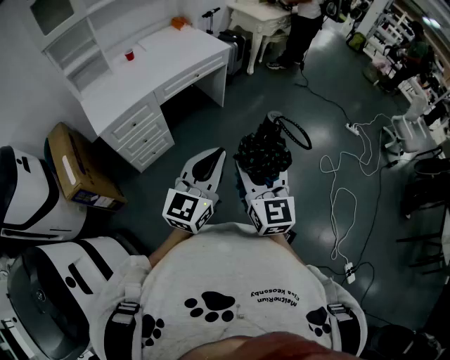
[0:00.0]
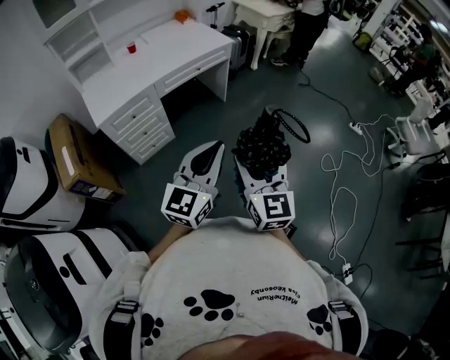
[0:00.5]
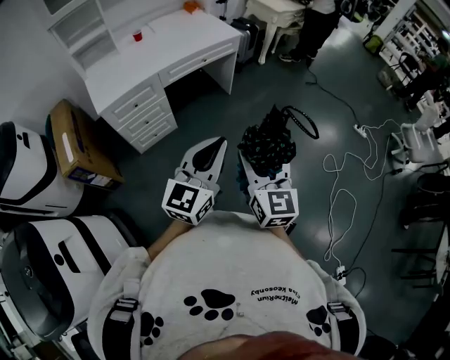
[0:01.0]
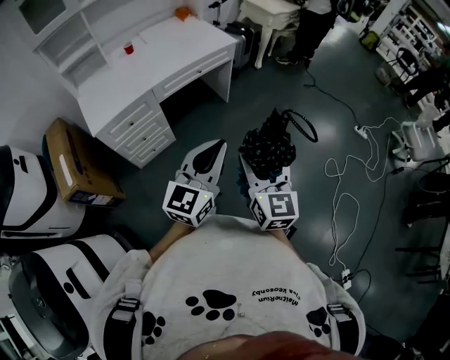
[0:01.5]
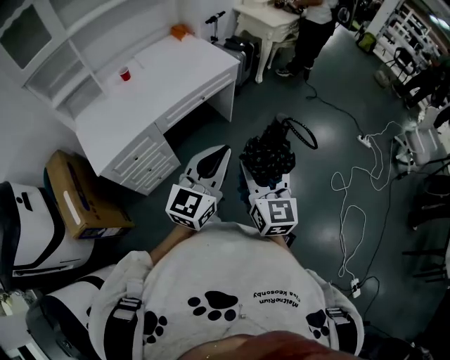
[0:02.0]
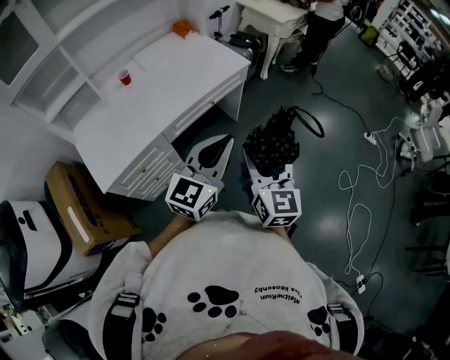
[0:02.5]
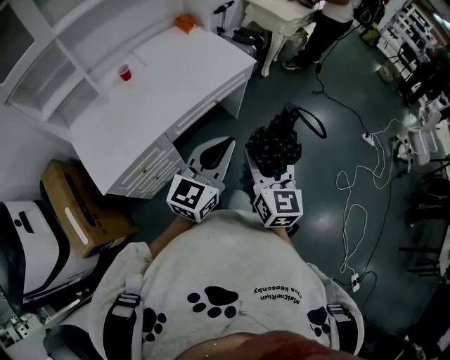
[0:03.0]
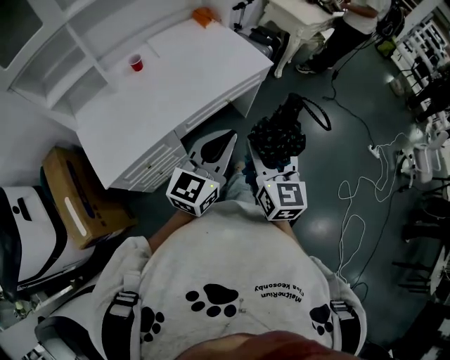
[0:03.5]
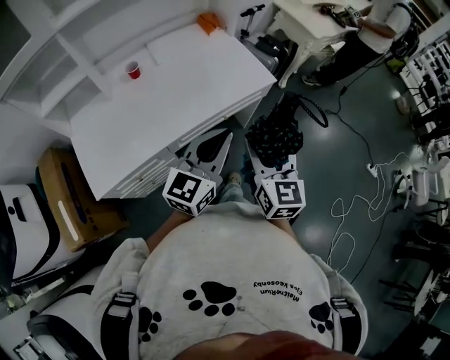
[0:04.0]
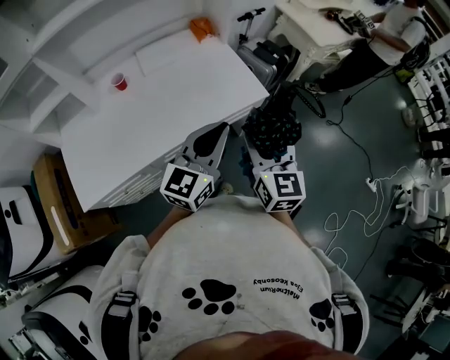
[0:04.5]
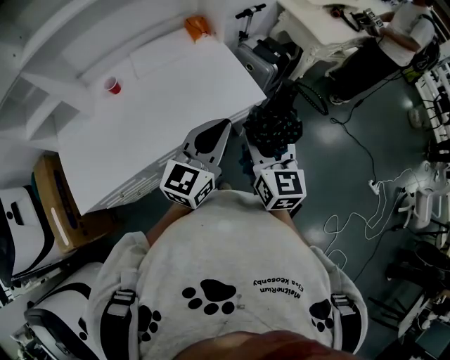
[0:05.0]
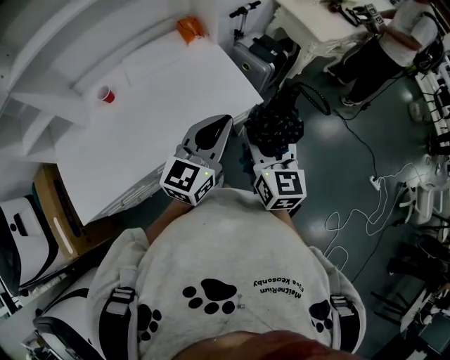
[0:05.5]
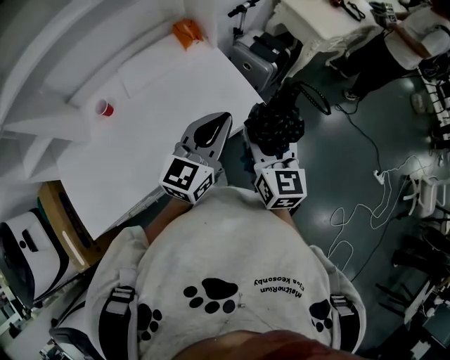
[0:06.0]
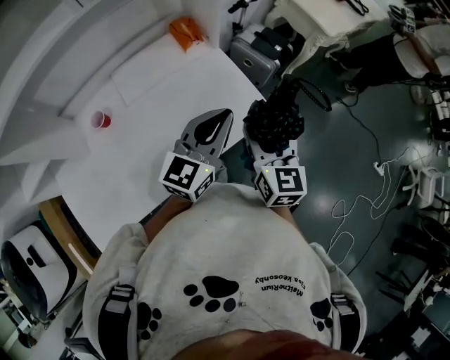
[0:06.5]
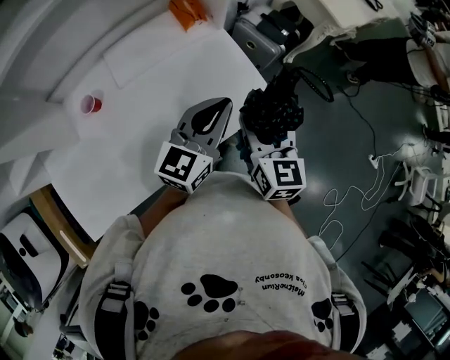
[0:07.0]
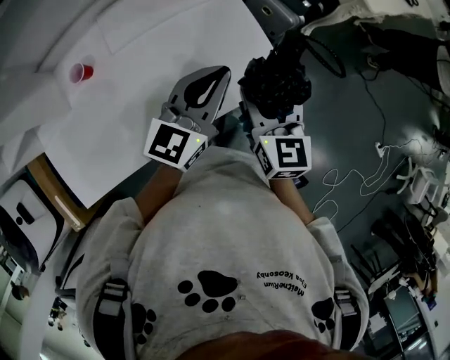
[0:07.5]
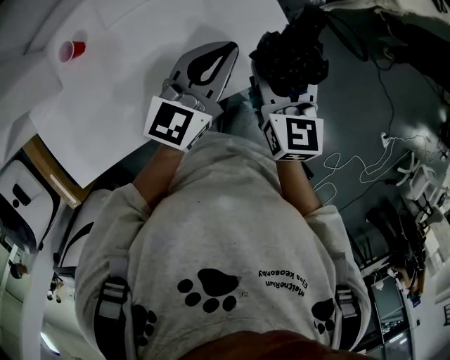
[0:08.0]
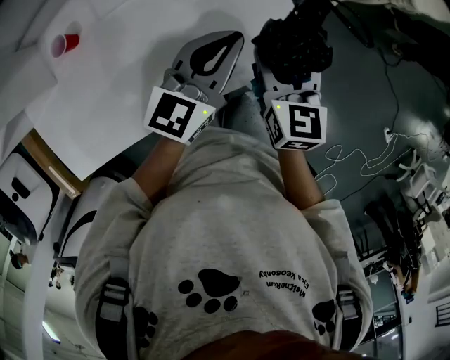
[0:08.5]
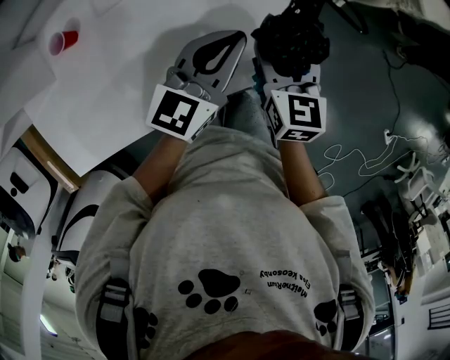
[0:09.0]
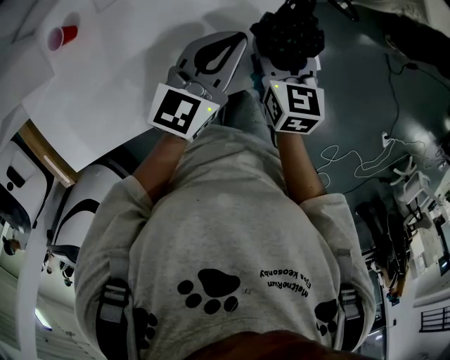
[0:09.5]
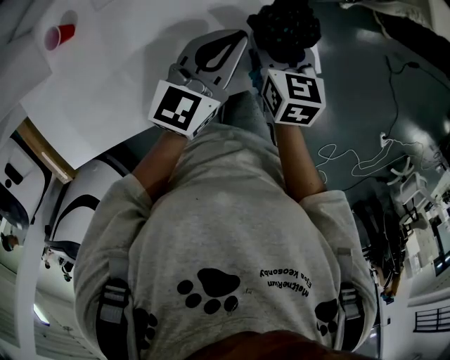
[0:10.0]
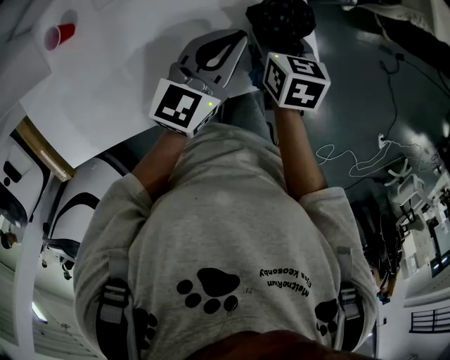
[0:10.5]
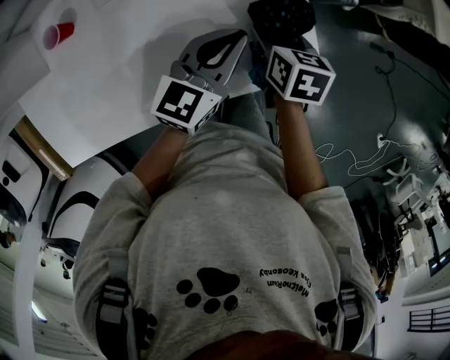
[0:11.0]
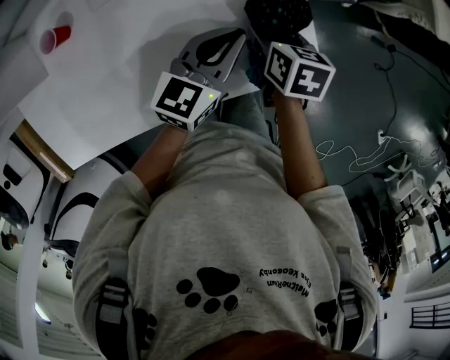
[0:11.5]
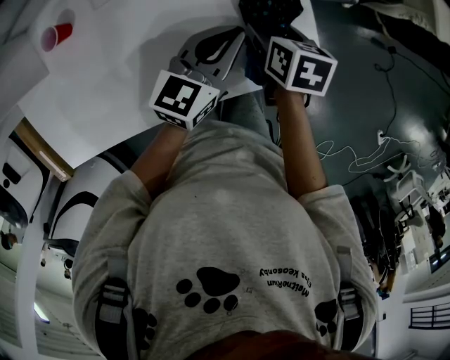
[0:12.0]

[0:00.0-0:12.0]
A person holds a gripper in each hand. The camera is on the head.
0:00.0 to 0:02.0: The two grippers go approximately 25 cm forward.
0:02.0 to 0:04.0: The grippers both shift forward and to the left by roughly 35 cm.
0:04.0 to 0:06.0: Both grippers travel together forward, about 30 cm.
0:06.0 to 0:08.0: The right gripper heads forward, downward and to the left, covering some 20 cm. Meanwhile the left gripper is displaced downward, forward and to the left by roughly 20 cm.
0:08.0 to 0:10.0: The left gripper moves downward, roughly 10 cm; the right gripper heads downward and forward, covering roughly 15 cm.
0:10.0 to 0:12.0: The right gripper moves roughly 5 cm, and swivels about 20 degrees.

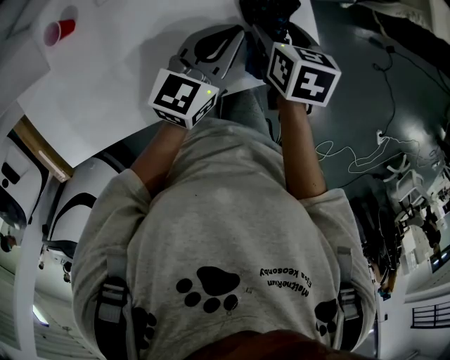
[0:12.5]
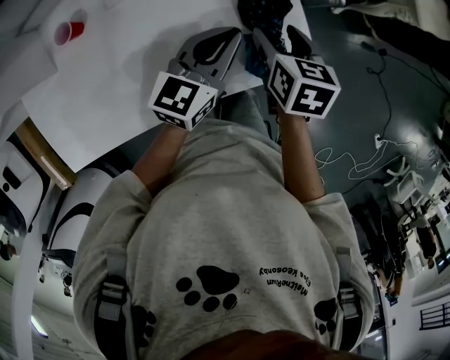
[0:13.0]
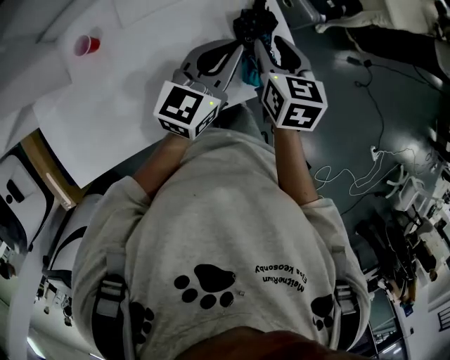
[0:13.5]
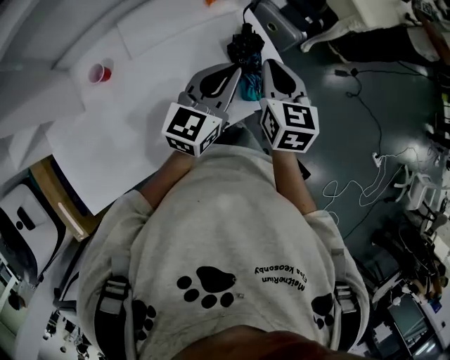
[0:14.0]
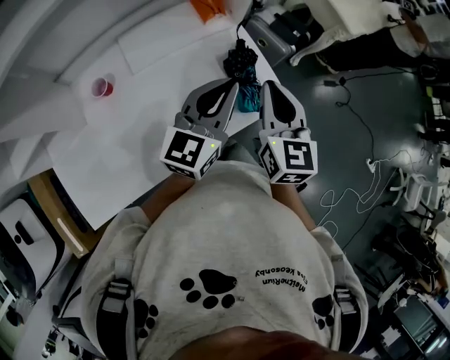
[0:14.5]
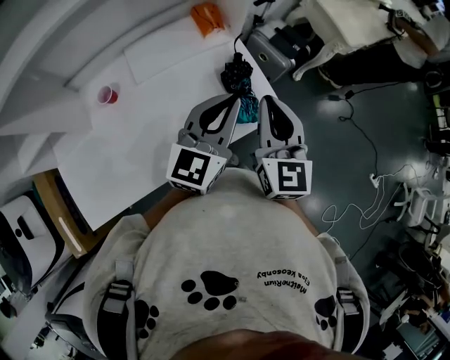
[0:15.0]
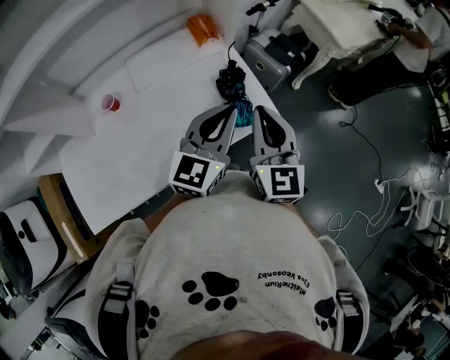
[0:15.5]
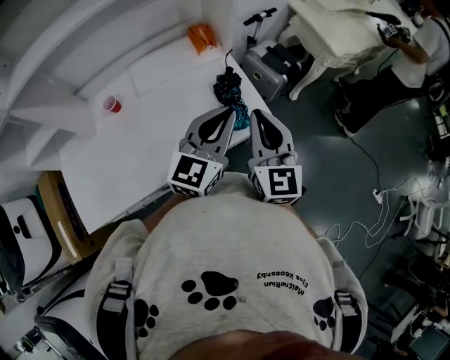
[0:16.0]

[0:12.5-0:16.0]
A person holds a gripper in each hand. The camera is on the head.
0:12.5 to 0:14.5: Both grippers move upward, some 25 cm. The right gripper points its fingers some 40 degrees further upward, and closes its fingers.
0:14.5 to 0:16.0: The left gripper travels to the right and backward by approximately 10 cm. Meanwhile the right gripper goes about 10 cm backward and to the right.

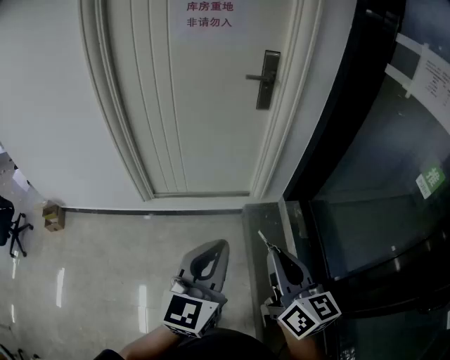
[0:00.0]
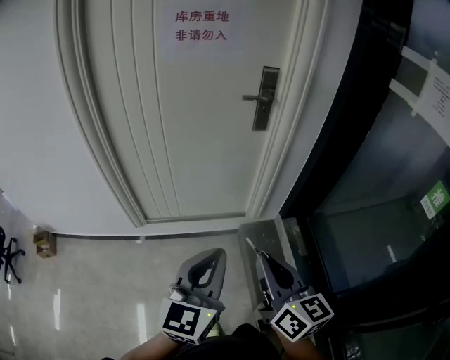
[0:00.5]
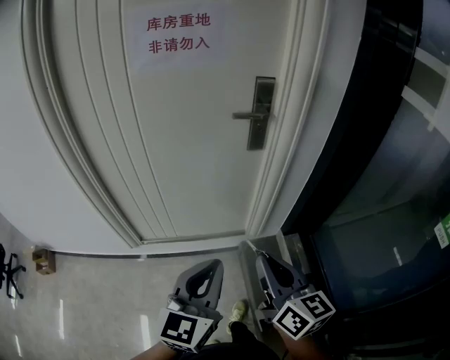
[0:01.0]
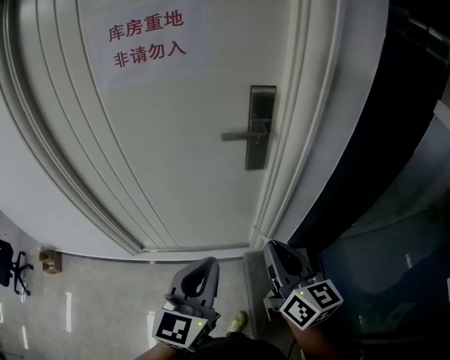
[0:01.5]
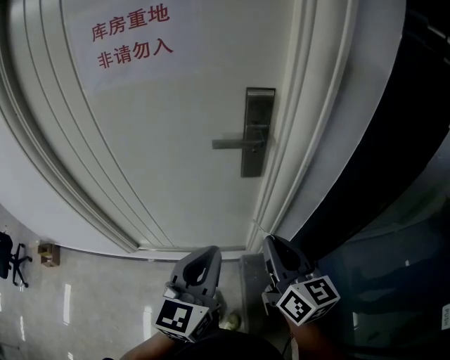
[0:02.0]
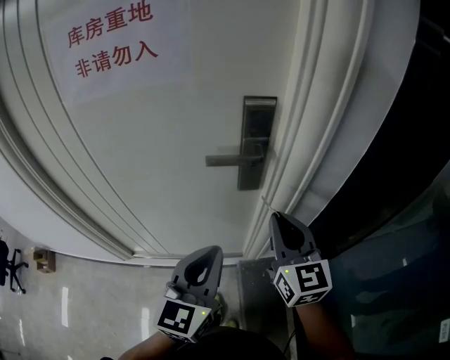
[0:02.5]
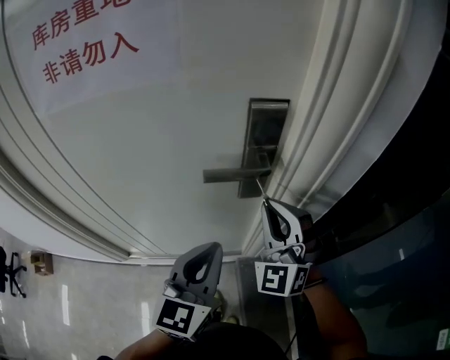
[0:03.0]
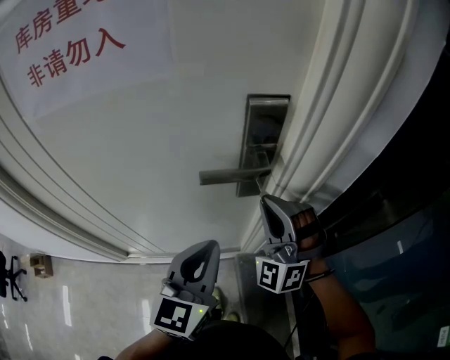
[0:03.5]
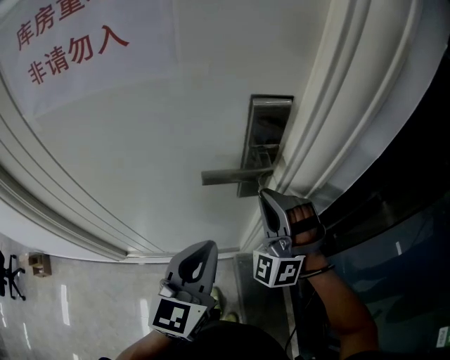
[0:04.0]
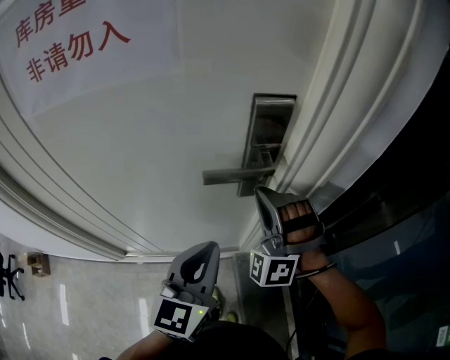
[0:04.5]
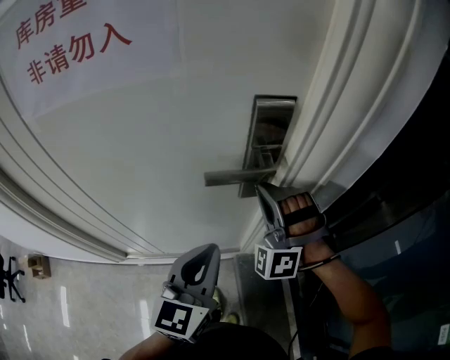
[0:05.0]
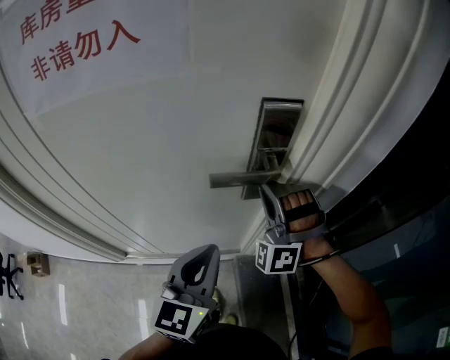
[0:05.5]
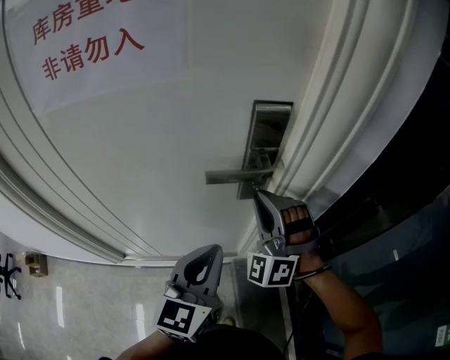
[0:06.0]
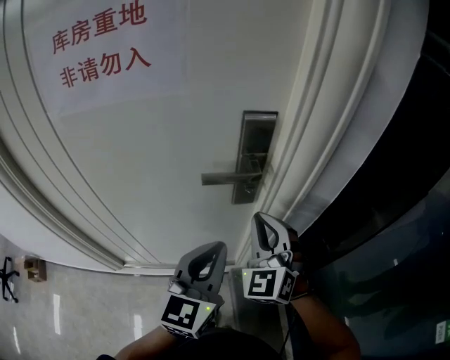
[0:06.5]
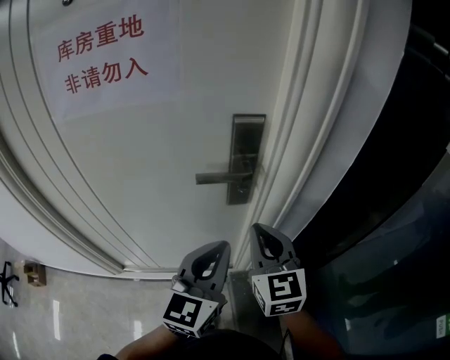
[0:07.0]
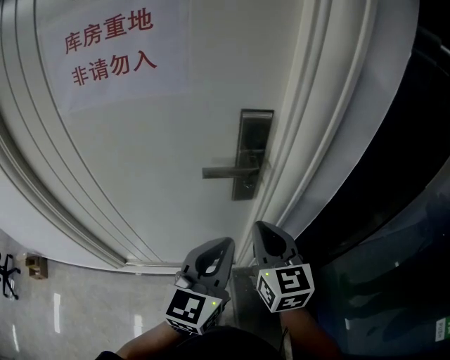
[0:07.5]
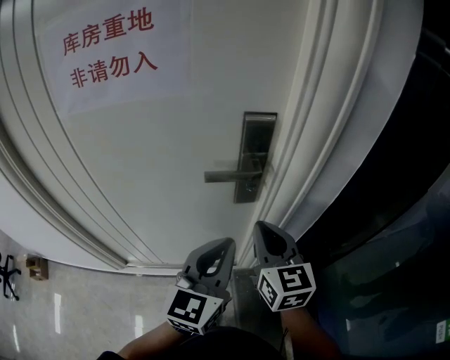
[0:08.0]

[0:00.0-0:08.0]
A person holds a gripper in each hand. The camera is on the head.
0:00.0 to 0:02.0: The pair of grippers is taken forward, about 50 cm.
0:02.0 to 0:04.0: Both grippers travel together forward, some 15 cm. The right gripper rotates around the line of its fingers by approximately 100 degrees, counterclockwise from behind.
0:04.0 to 0:06.0: The grippers move only a little.
0:06.0 to 0:08.0: The right gripper shifts about 5 cm backward, and twists some 80 degrees clockwise, seen from behind. The left gripper moves about 5 cm.

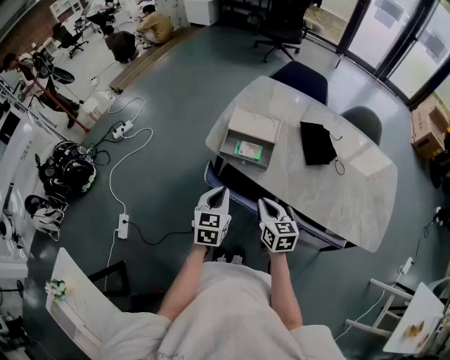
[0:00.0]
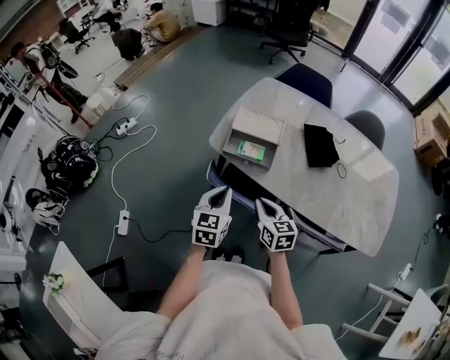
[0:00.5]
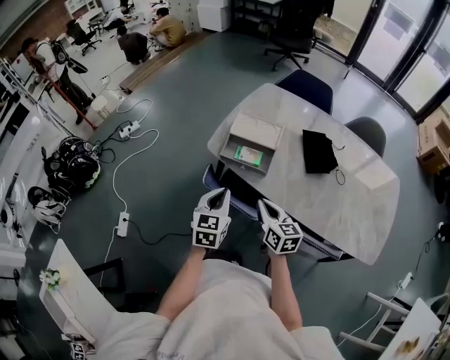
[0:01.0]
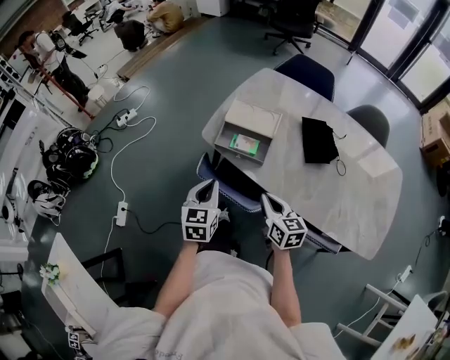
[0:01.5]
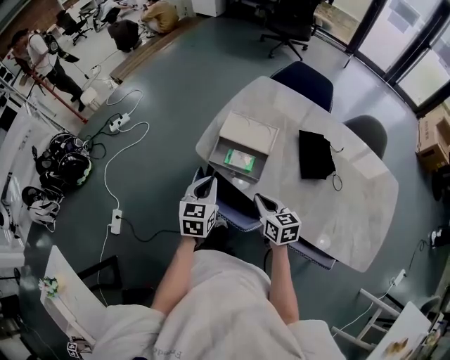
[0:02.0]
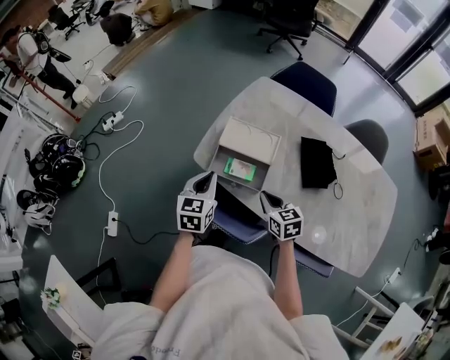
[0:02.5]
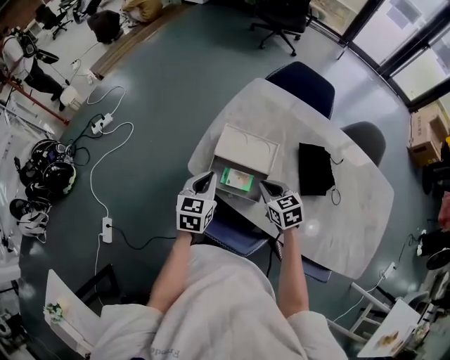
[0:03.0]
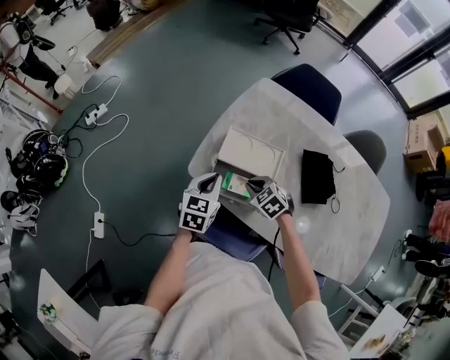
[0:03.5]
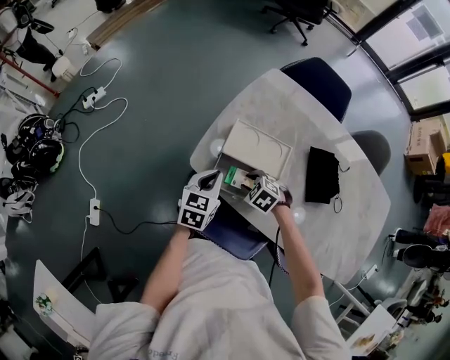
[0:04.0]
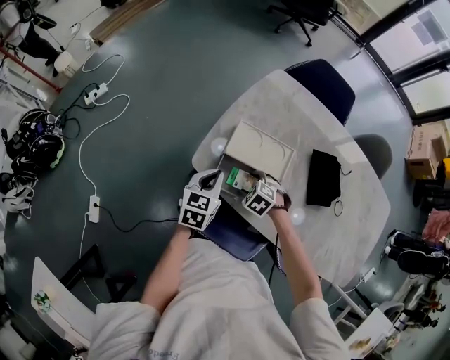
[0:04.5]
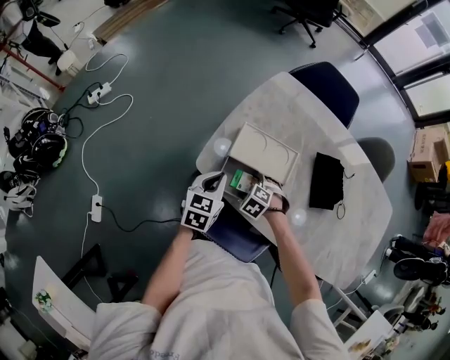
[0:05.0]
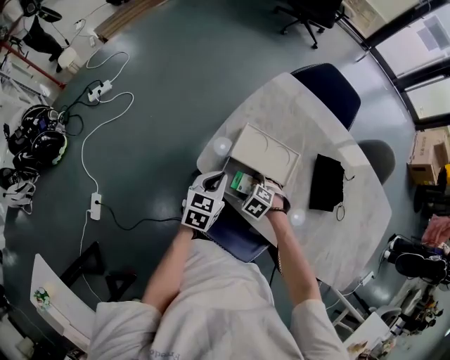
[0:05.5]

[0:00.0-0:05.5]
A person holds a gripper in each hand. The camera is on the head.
0:00.0 to 0:02.0: Both grippers travel together forward, roughly 10 cm.
0:02.0 to 0:03.5: Both grippers move forward and downward, roughly 20 cm. The right gripper points its fingers some 30 degrees further downward.
0:03.5 to 0:05.5: The right gripper travels downward by about 10 cm, swivels roughly 30 degrees, and opens its fingers.
